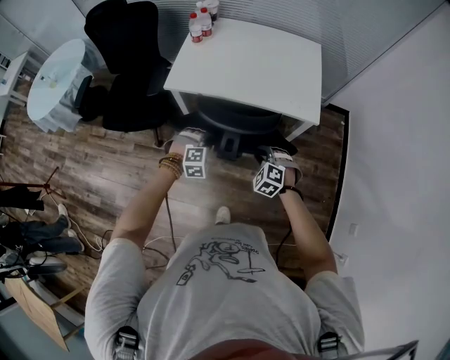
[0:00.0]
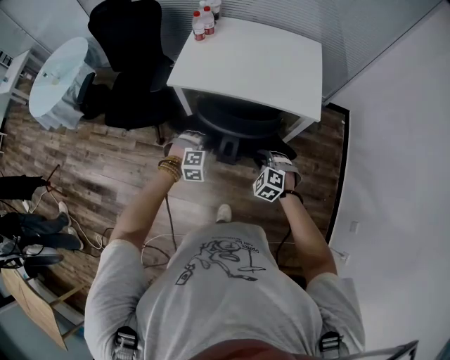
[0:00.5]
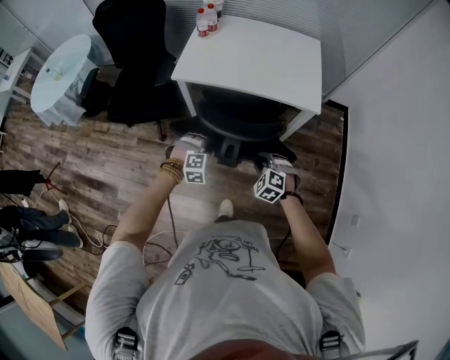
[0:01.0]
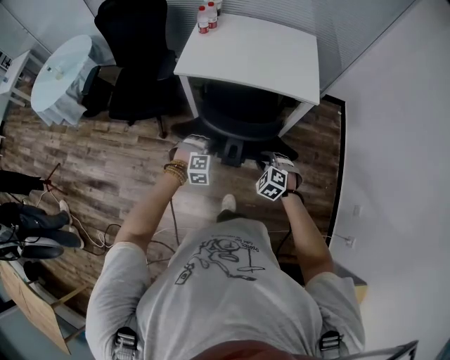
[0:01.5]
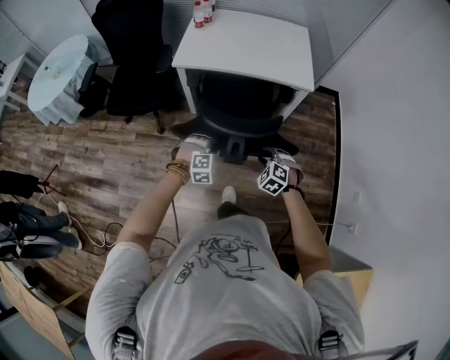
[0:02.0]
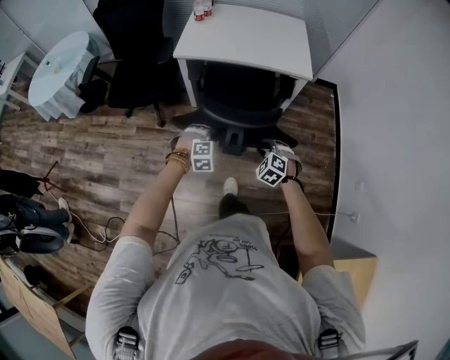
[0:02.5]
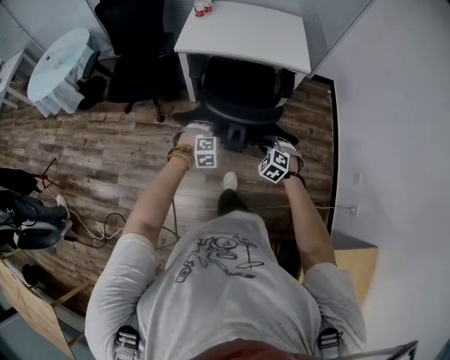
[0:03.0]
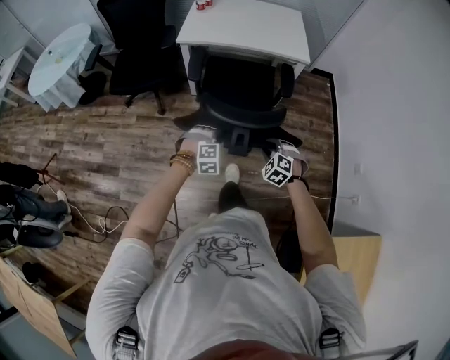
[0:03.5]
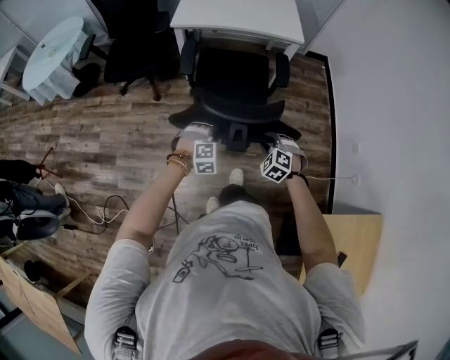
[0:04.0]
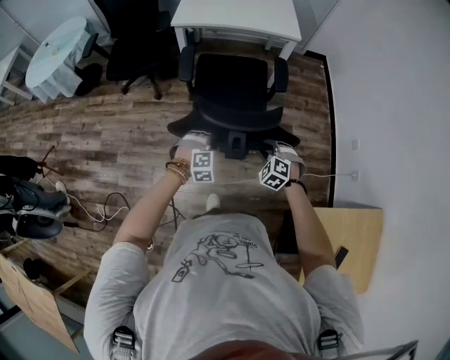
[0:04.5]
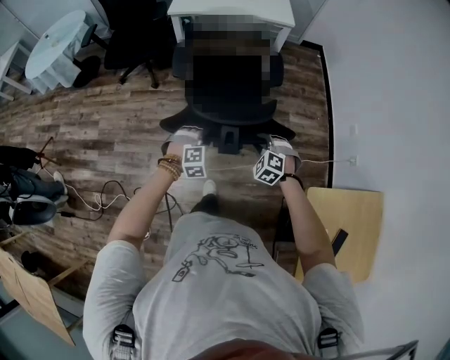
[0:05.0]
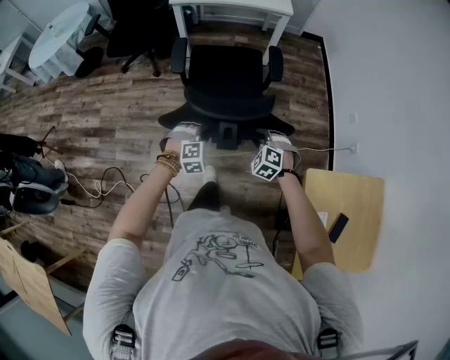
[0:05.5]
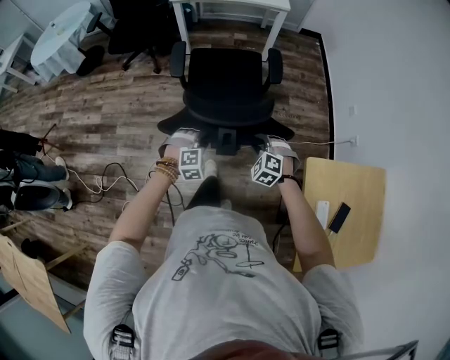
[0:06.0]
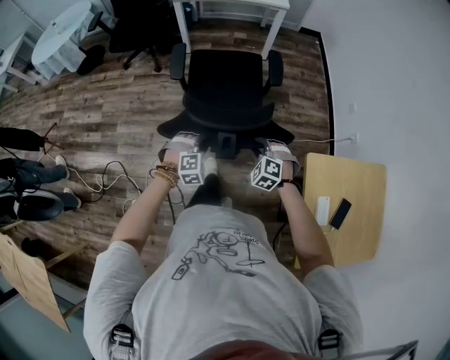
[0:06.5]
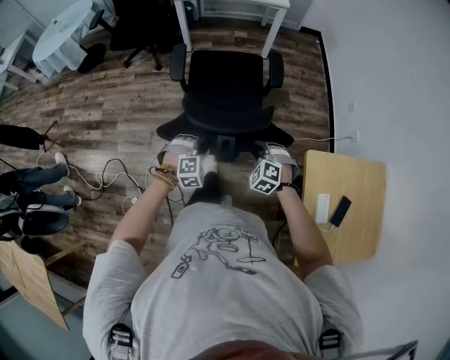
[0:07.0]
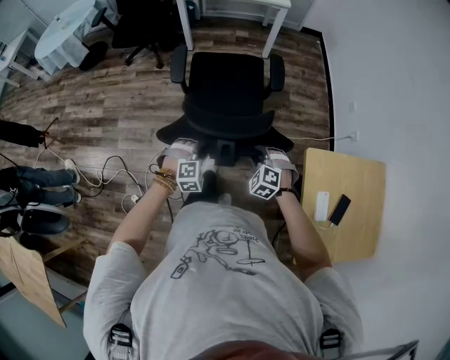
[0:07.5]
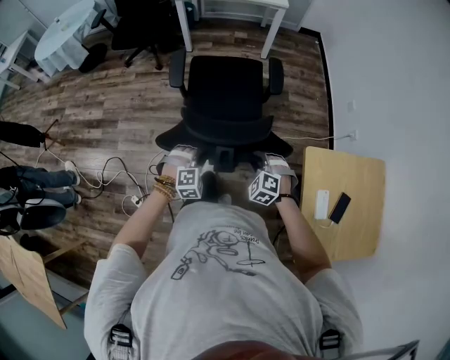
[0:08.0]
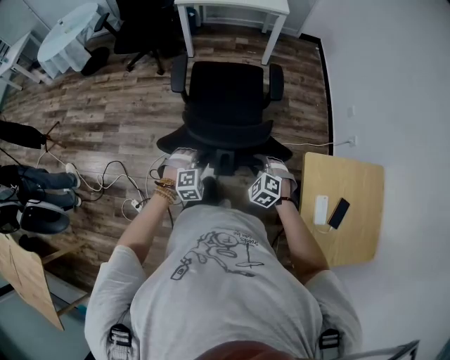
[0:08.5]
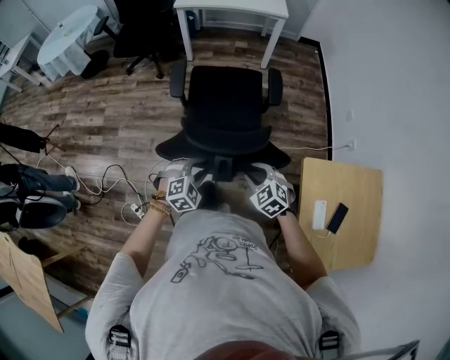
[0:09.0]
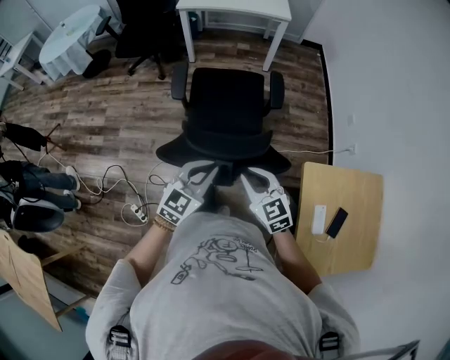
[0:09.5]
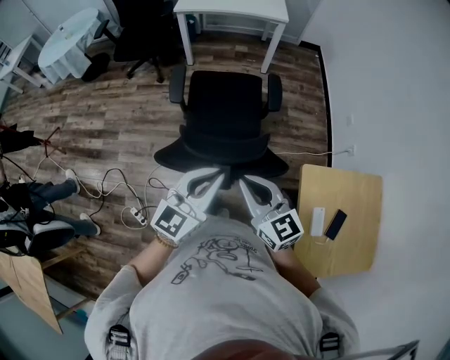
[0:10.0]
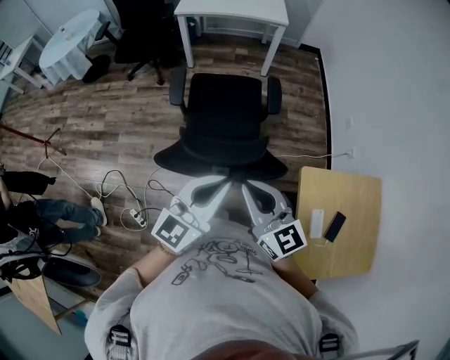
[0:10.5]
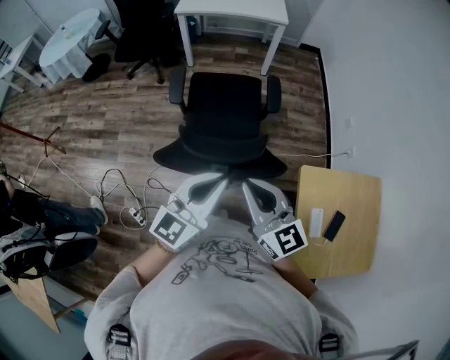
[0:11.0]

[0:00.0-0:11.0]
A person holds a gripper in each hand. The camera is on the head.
0:00.0 to 0:02.0: Both grippers move backward, approximately 25 cm.
0:02.0 to 0:03.5: The grippers both shift backward by some 20 cm.
0:03.5 to 0:05.5: The grippers both shift backward by approximately 35 cm.
0:05.5 to 0:07.5: Both grippers travel together backward, roughly 20 cm.
0:07.5 to 0:09.0: The right gripper is displaced upward by roughly 5 cm, and rotates approximately 20 degrees; the left gripper ends up approximately 5 cm from where it was.
0:09.0 to 0:11.0: The grippers both shift upward by approximately 25 cm. The left gripper points its fingers about 50 degrees further upward, and closes, while the right gripper tilts its fingers some 40 degrees upward, and closes its fingers.

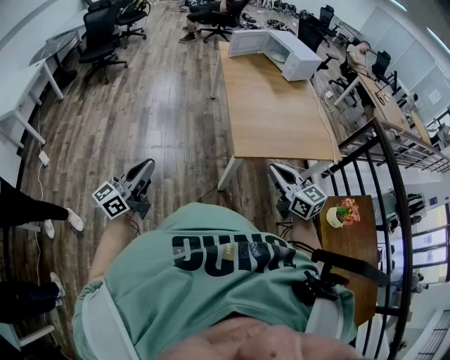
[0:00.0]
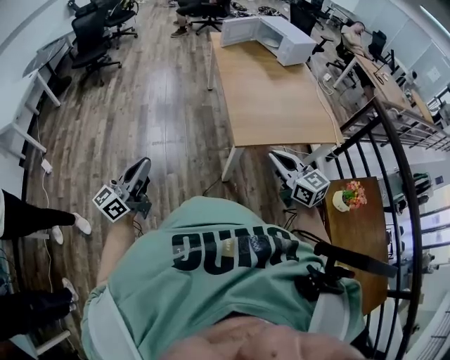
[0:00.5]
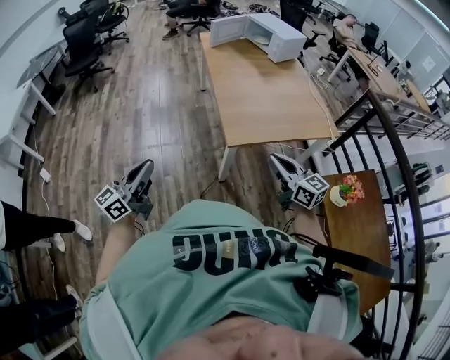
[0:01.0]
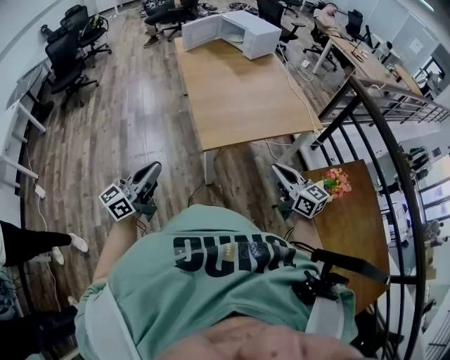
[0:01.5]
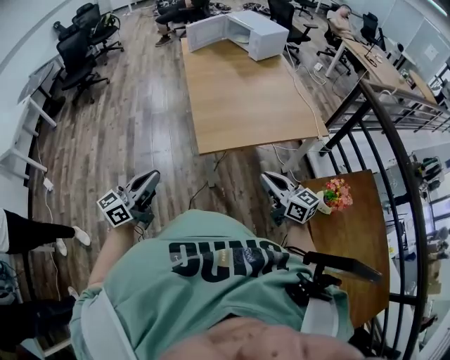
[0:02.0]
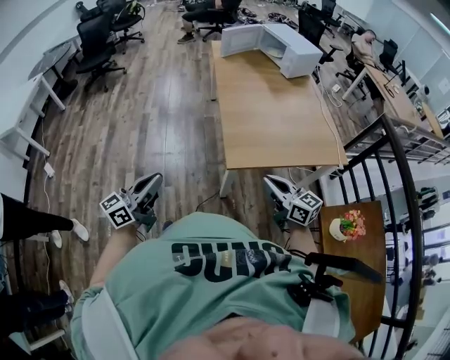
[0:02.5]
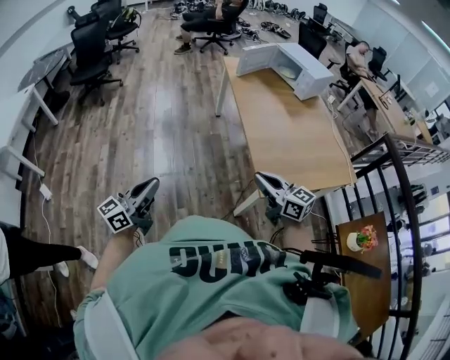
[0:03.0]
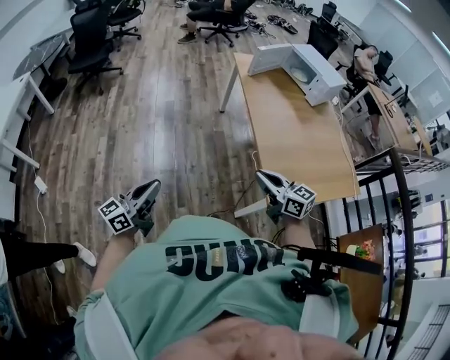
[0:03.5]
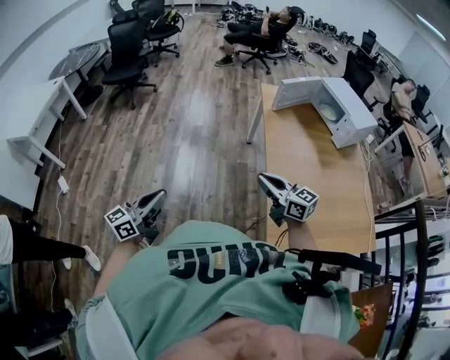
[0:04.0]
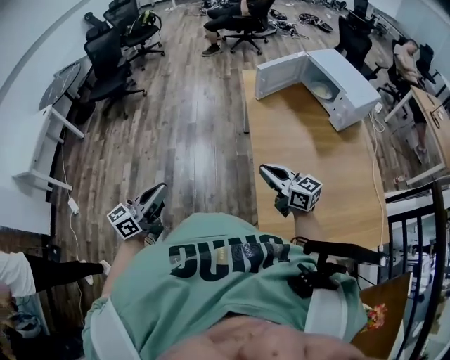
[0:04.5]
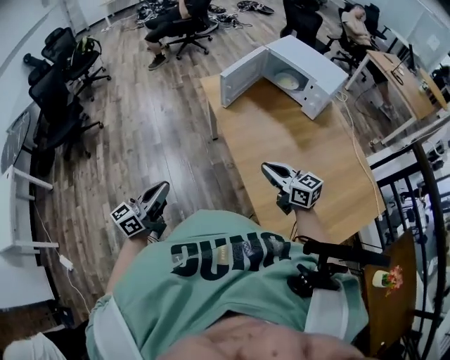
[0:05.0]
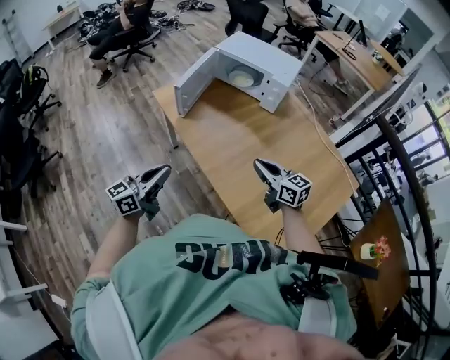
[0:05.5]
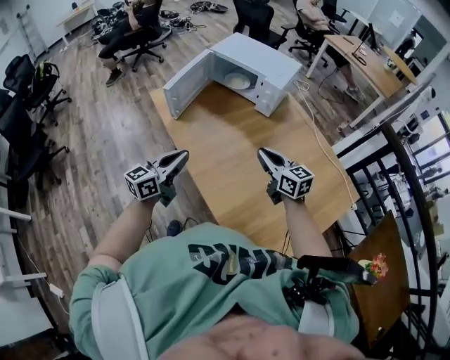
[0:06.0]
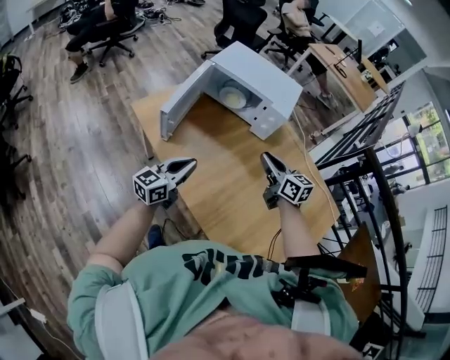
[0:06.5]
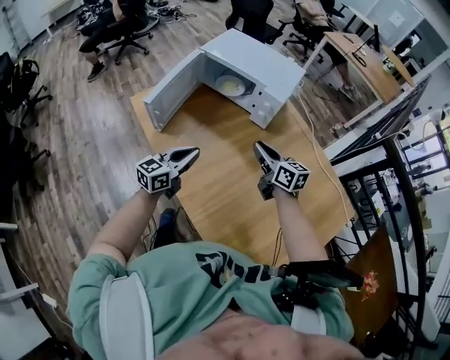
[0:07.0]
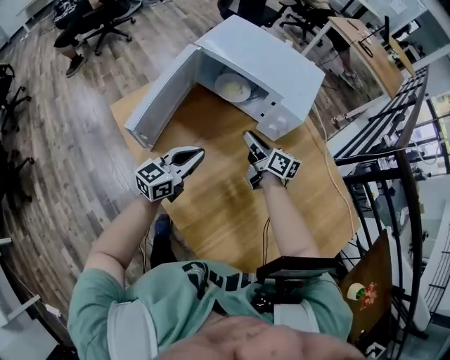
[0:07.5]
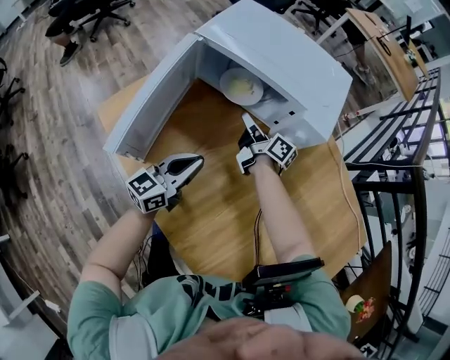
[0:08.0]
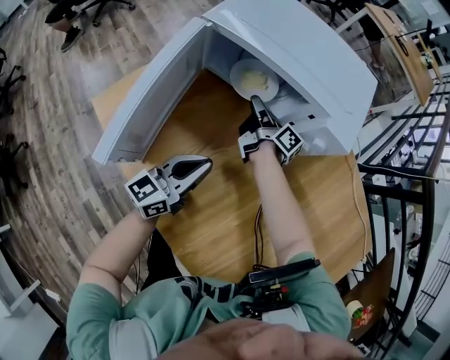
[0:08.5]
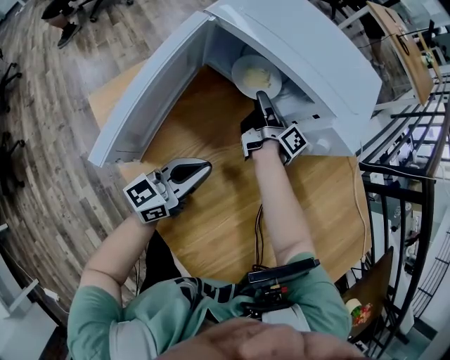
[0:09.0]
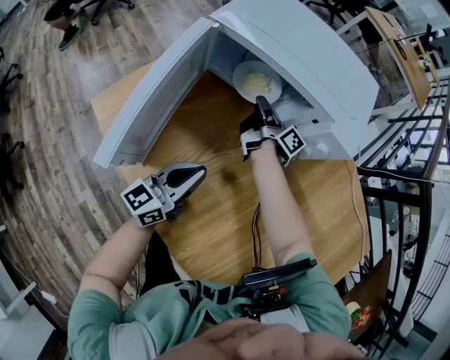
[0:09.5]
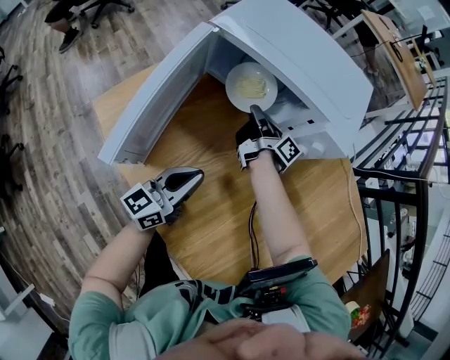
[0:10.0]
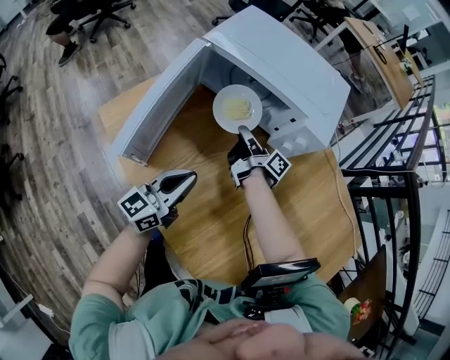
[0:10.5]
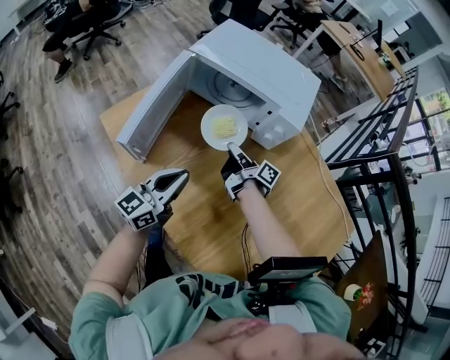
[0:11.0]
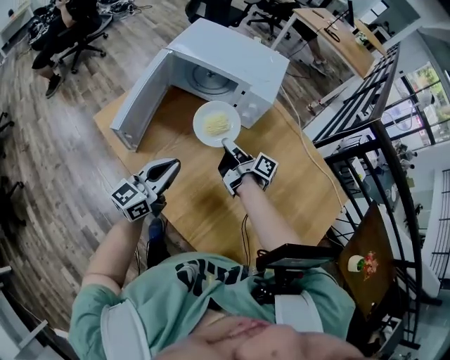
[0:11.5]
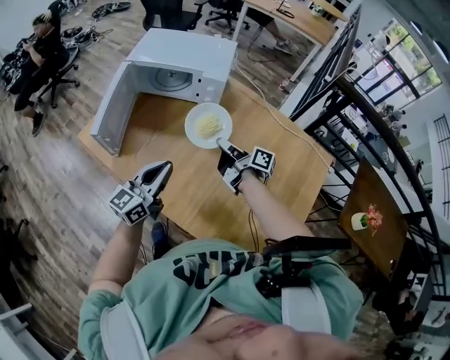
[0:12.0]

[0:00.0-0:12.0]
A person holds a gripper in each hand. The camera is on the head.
0:00.0 to 0:02.0: The grippers both shift to the right by roughly 20 cm.
0:02.0 to 0:04.0: The pair of grippers is taken forward and to the left, roughly 60 cm.
0:04.0 to 0:06.0: The pair of grippers is taken about 50 cm. The left gripper swivels about 40 degrees, while the right gripper turns by approximately 40 degrees.
0:06.0 to 0:08.0: Both grippers travel together forward and downward, some 50 cm. The right gripper twists roughly 50 degrees clockwise, seen from behind, and opens its fingers.
0:08.0 to 0:10.0: The right gripper rotates about 20 degrees, and closes.
0:10.0 to 0:12.0: The left gripper moves backward, upward and to the right, roughly 30 cm. The right gripper shifts approximately 40 cm backward, to the right and upward.

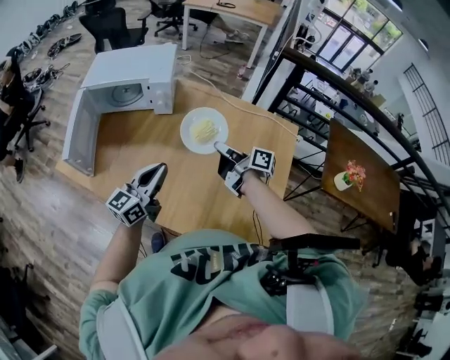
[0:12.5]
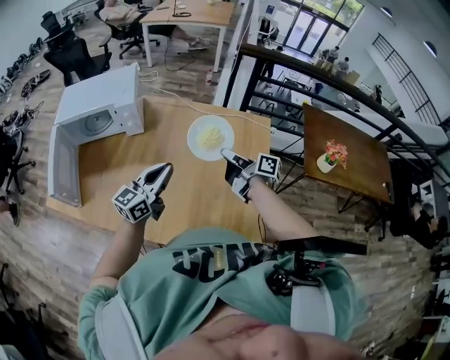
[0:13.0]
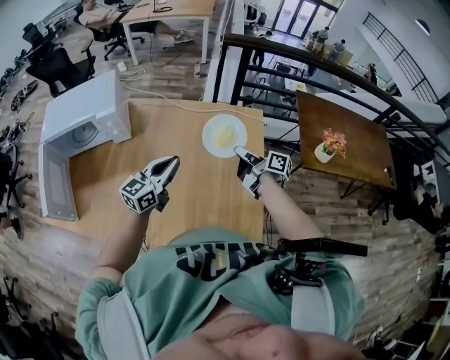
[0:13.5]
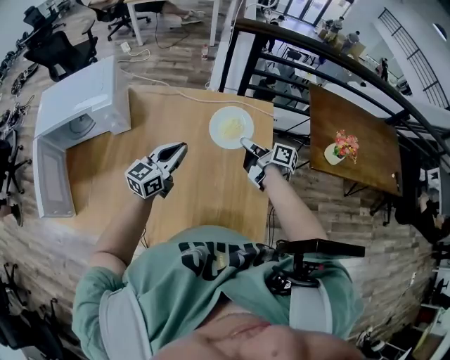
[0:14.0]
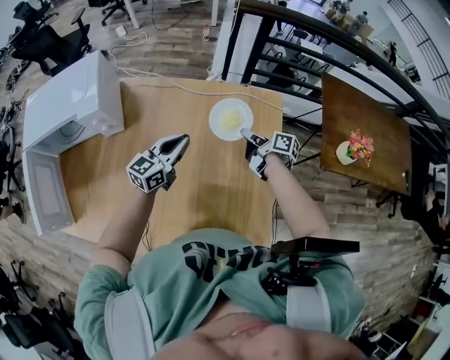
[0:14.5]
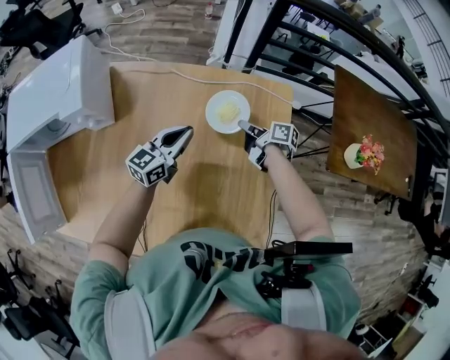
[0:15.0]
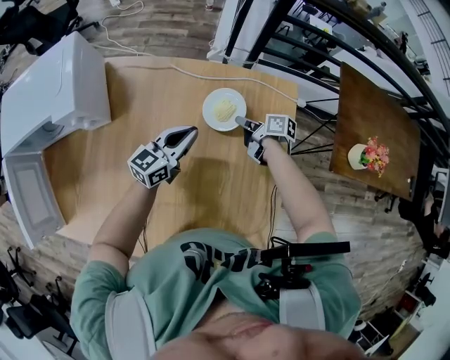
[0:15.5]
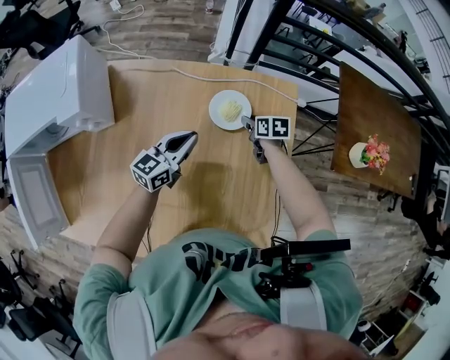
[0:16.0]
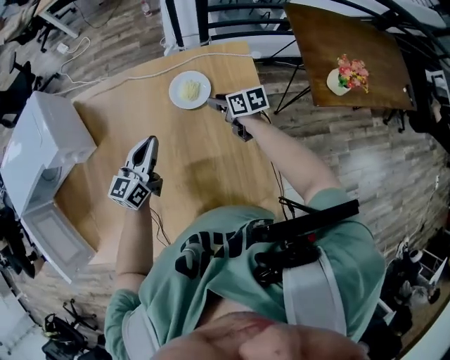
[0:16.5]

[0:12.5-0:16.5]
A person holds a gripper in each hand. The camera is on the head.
0:12.5 to 0:14.5: The right gripper goes roughly 35 cm to the right, forward and downward, and rotates about 20 degrees; the left gripper travels forward, to the right and downward by about 35 cm, and turns by roughly 20 degrees.
0:14.5 to 0:16.5: The right gripper goes approximately 5 cm downward, swivels approximately 40 degrees, and opens up.
